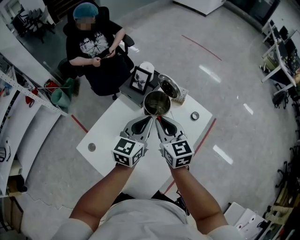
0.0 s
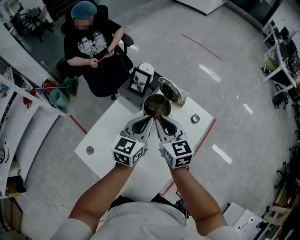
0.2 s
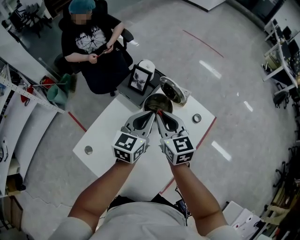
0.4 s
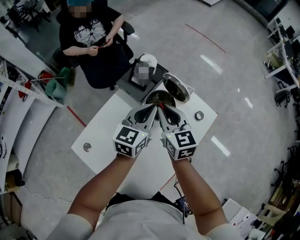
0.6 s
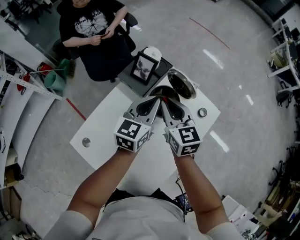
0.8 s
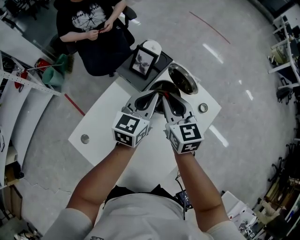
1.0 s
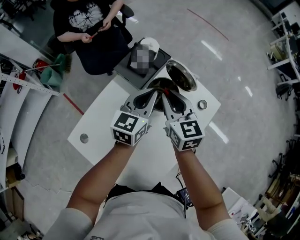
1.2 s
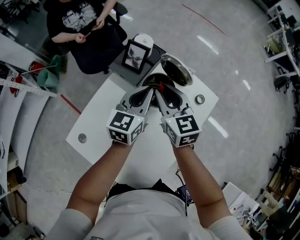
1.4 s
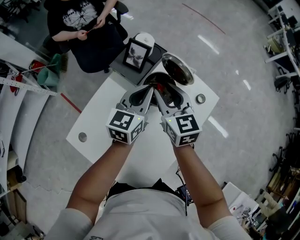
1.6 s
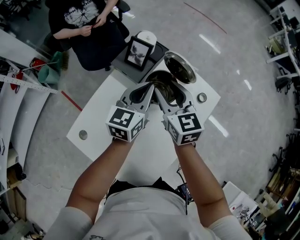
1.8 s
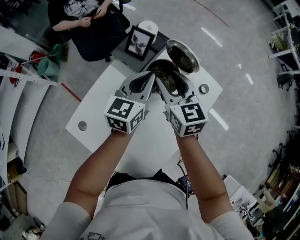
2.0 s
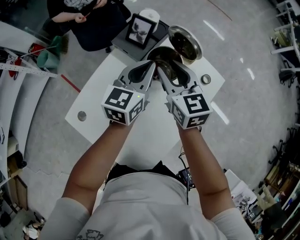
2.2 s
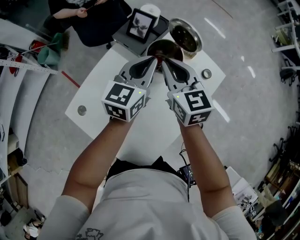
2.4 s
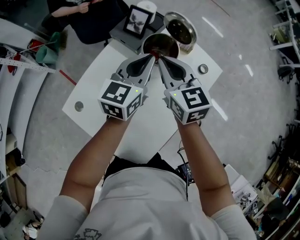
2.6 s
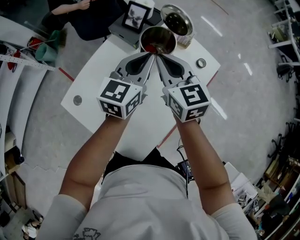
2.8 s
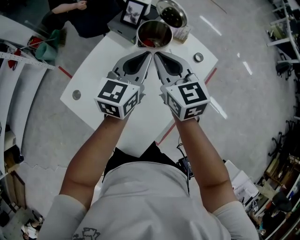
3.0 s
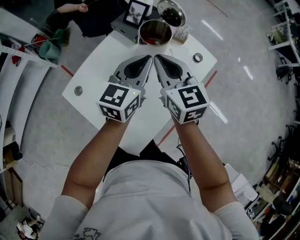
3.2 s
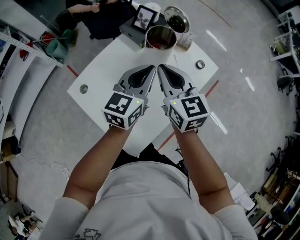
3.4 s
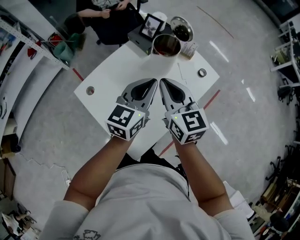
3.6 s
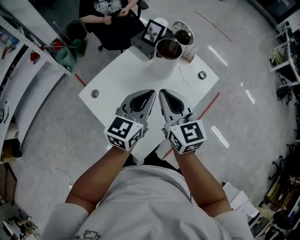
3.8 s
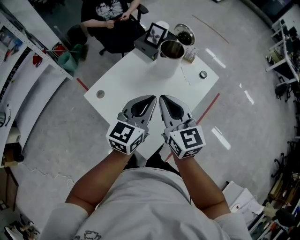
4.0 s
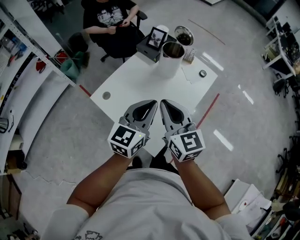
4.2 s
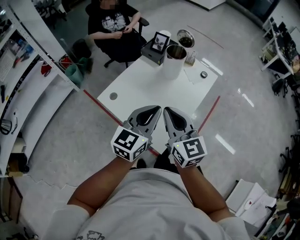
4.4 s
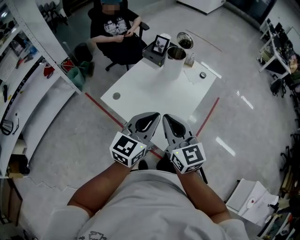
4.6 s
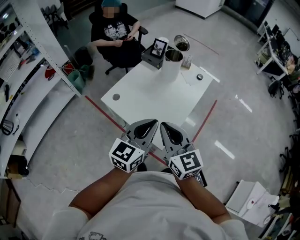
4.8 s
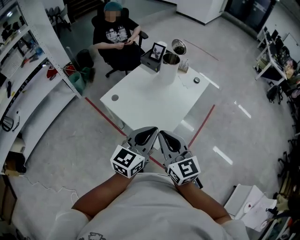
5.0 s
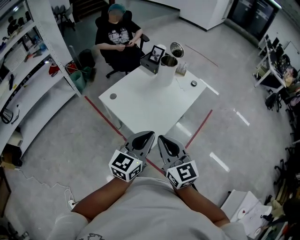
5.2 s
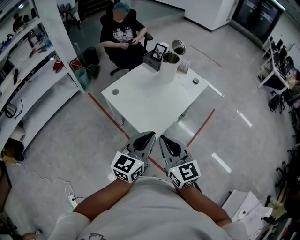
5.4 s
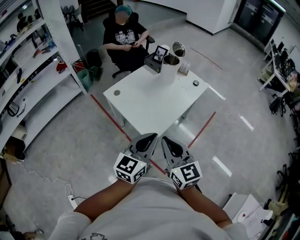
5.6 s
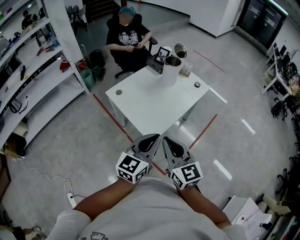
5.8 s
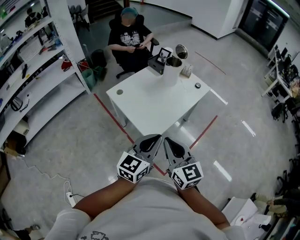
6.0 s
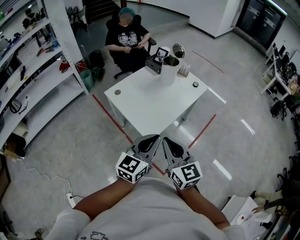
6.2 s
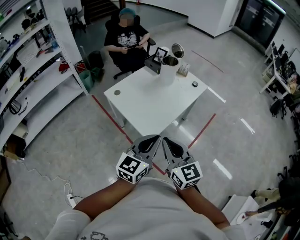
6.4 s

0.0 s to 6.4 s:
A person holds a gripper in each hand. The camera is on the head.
0.0 to 1.6 s: The right gripper is displaced forward by about 10 cm, and opens, while the left gripper travels forward and downward by some 10 cm.
1.6 to 3.2 s: The grippers both shift backward by approximately 15 cm. The right gripper closes.
3.2 to 4.8 s: The two grippers go some 40 cm backward.
4.8 to 6.4 s: Both grippers travel together backward and to the right, about 20 cm.

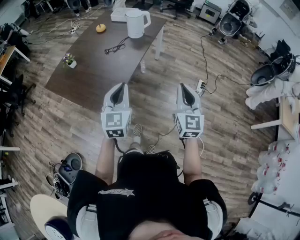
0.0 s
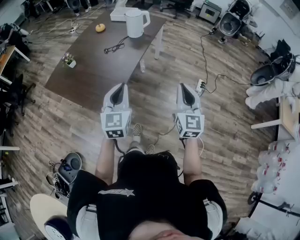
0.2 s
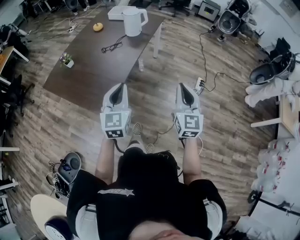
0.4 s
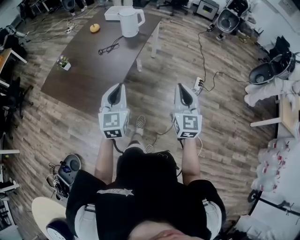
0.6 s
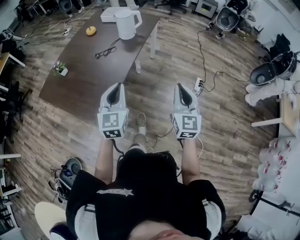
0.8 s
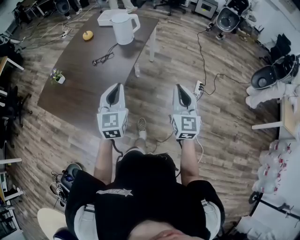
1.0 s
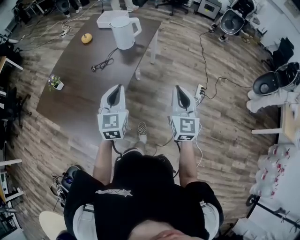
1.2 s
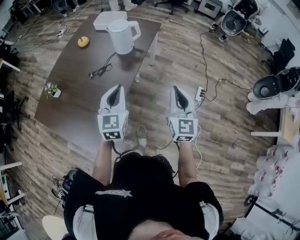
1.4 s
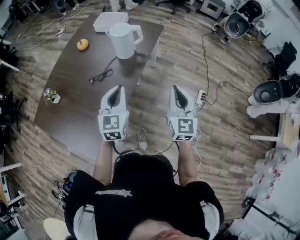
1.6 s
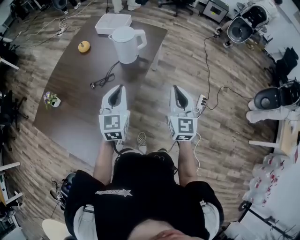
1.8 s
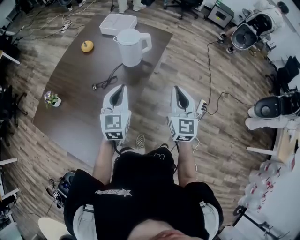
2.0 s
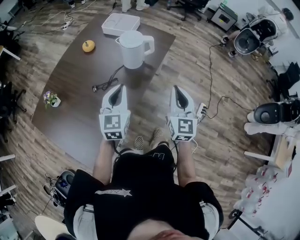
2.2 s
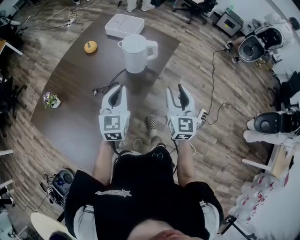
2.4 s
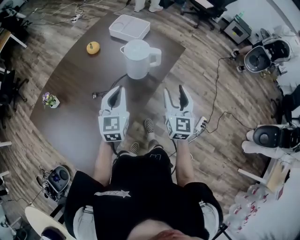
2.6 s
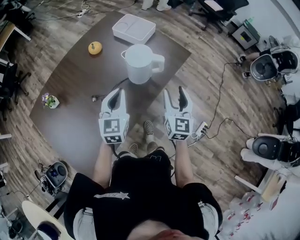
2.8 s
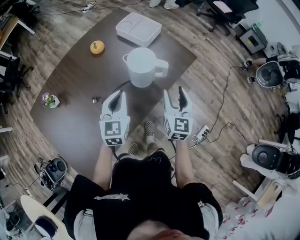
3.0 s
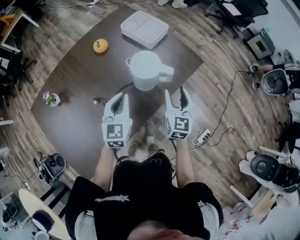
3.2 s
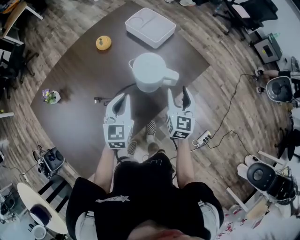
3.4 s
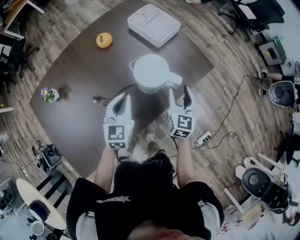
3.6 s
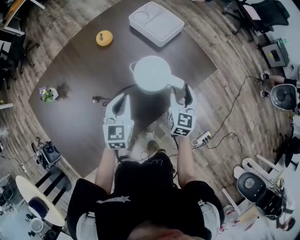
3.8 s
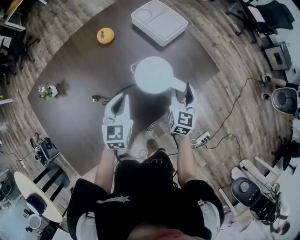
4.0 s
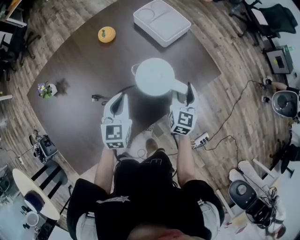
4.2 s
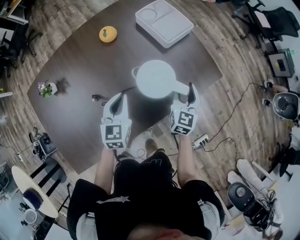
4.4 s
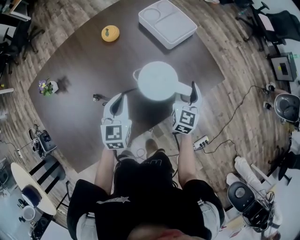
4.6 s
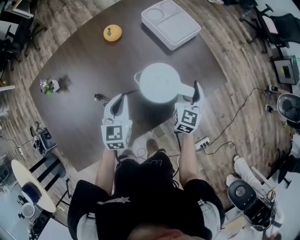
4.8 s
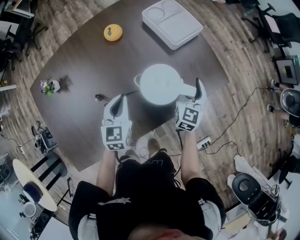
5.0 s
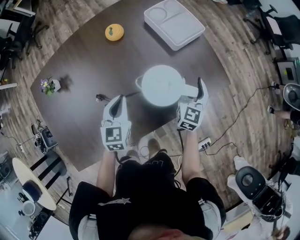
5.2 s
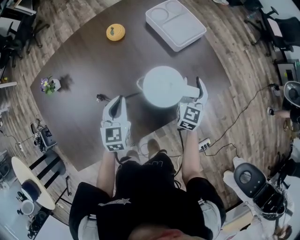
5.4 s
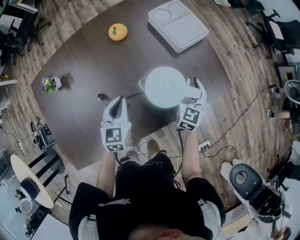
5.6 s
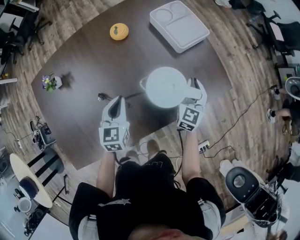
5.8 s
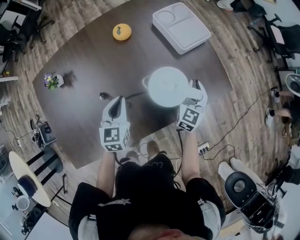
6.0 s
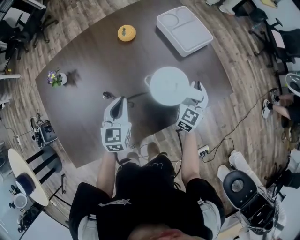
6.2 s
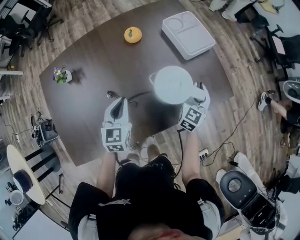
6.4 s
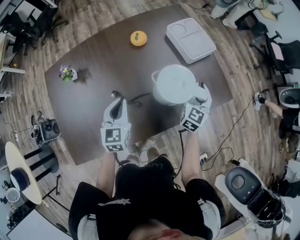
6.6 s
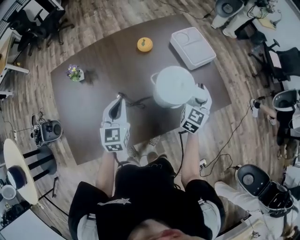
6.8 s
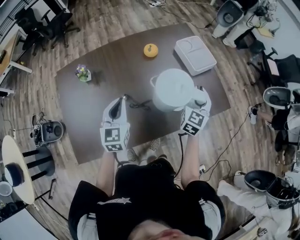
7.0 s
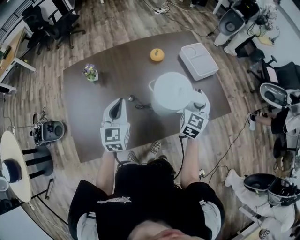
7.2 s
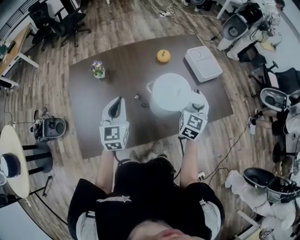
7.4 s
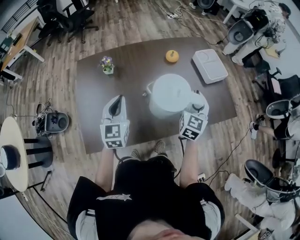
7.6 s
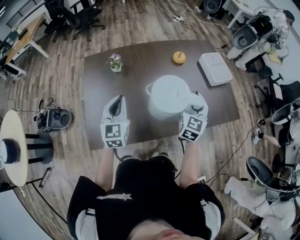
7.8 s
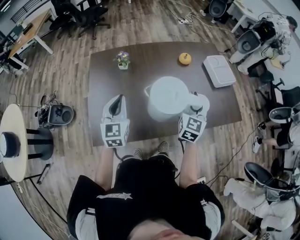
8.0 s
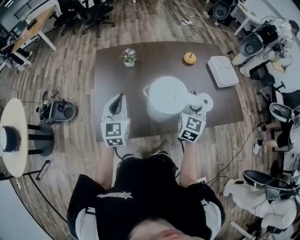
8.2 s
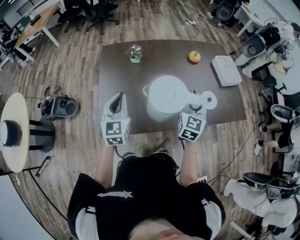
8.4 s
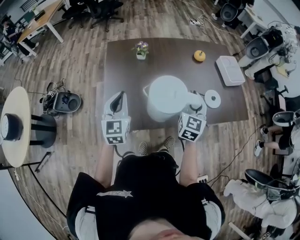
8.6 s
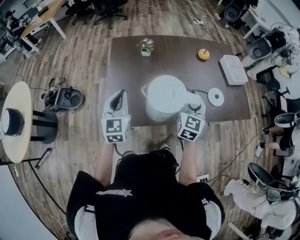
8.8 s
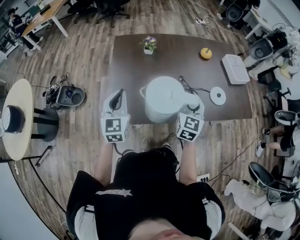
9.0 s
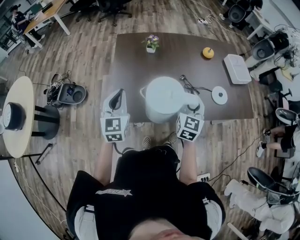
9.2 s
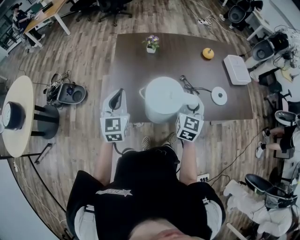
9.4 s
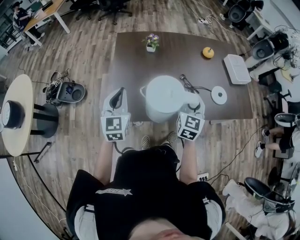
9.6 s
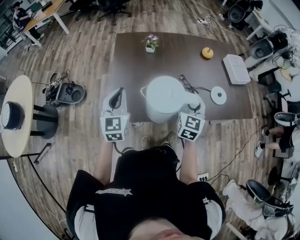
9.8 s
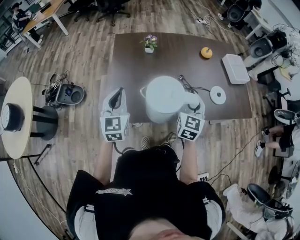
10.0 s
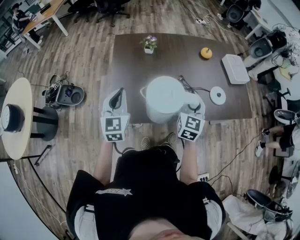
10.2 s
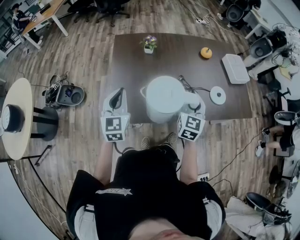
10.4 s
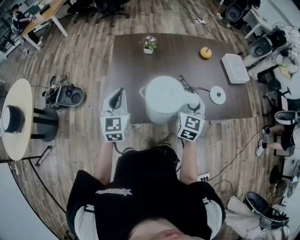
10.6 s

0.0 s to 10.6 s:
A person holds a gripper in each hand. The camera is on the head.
0.0 to 1.6 s: Both grippers move forward, some 35 cm.
1.6 to 3.0 s: The grippers both shift forward by about 30 cm. The right gripper opens up.
3.0 to 4.6 s: The right gripper heads forward and downward, covering roughly 20 cm, while the left gripper moves downward and forward, roughly 15 cm.
4.6 to 6.0 s: The right gripper closes.
6.0 to 7.6 s: The two grippers go about 30 cm to the left, upward and backward. The left gripper rotates approximately 20 degrees.
7.6 to 9.0 s: Both grippers move to the left and backward, roughly 25 cm.
9.0 to 10.6 s: The grippers make only small movements.

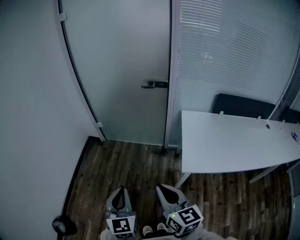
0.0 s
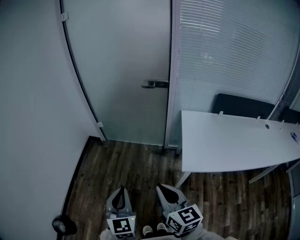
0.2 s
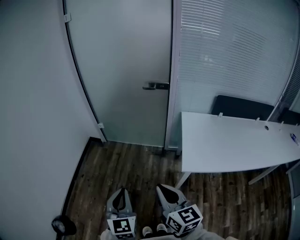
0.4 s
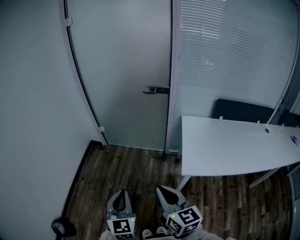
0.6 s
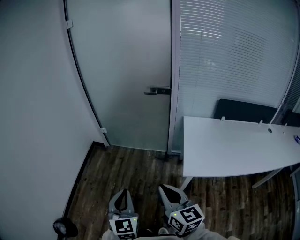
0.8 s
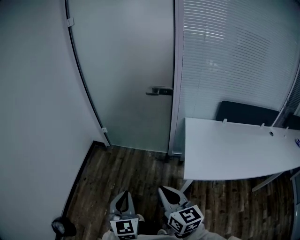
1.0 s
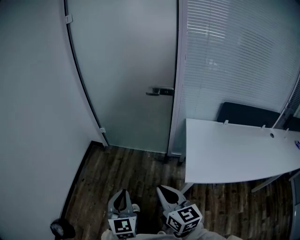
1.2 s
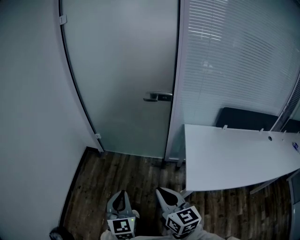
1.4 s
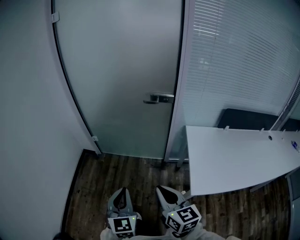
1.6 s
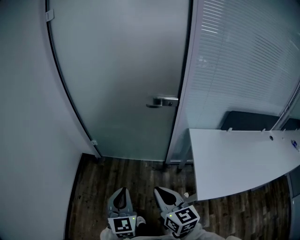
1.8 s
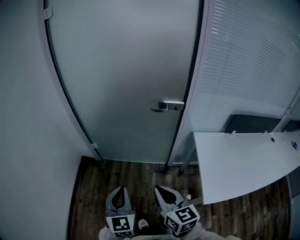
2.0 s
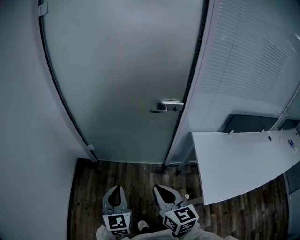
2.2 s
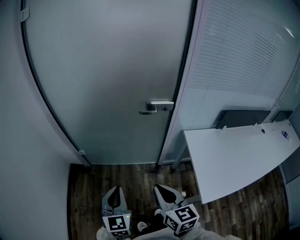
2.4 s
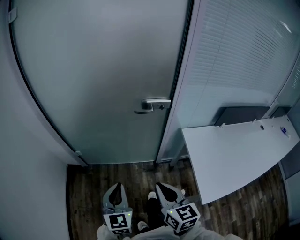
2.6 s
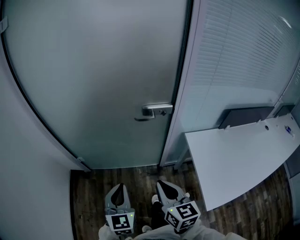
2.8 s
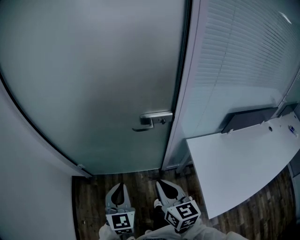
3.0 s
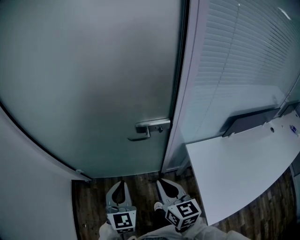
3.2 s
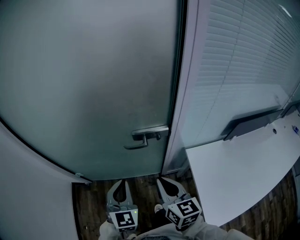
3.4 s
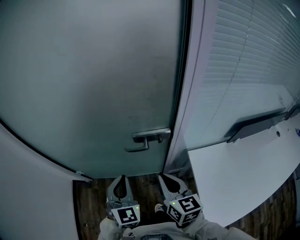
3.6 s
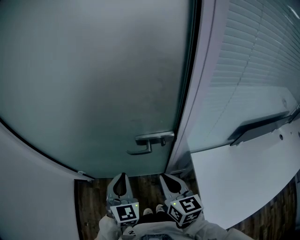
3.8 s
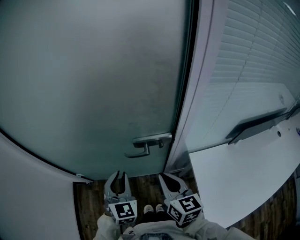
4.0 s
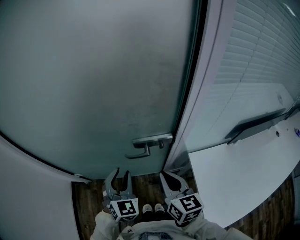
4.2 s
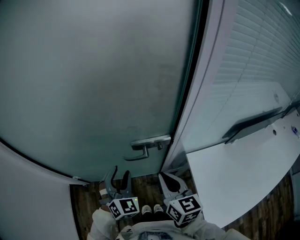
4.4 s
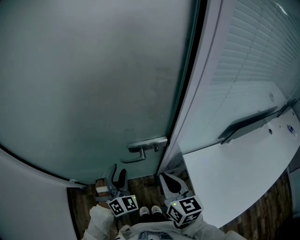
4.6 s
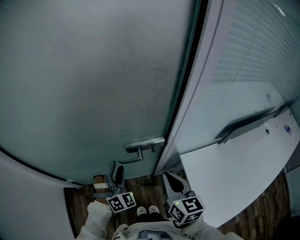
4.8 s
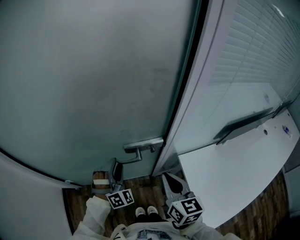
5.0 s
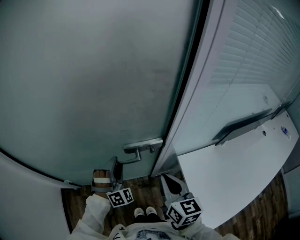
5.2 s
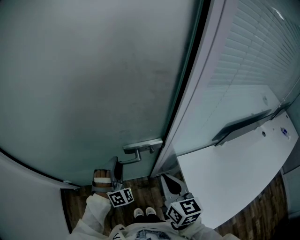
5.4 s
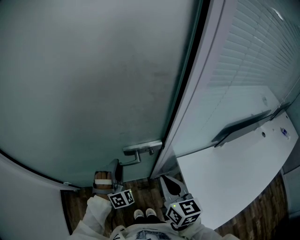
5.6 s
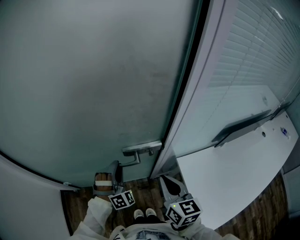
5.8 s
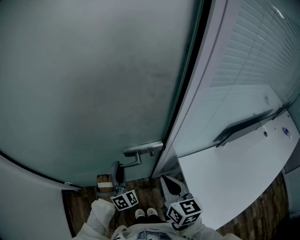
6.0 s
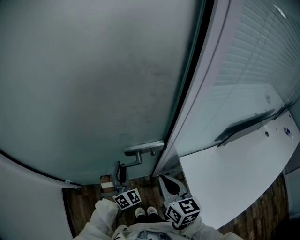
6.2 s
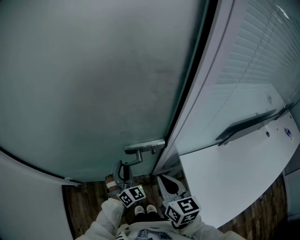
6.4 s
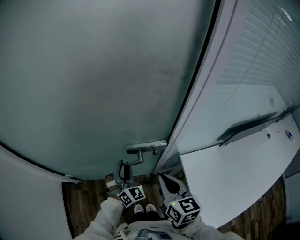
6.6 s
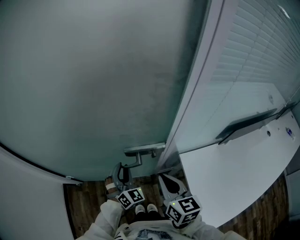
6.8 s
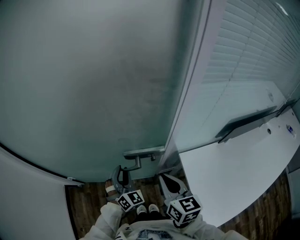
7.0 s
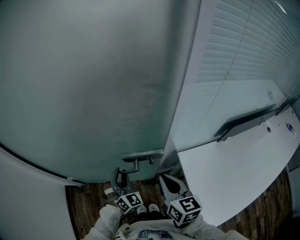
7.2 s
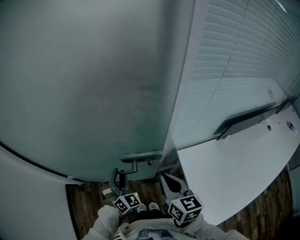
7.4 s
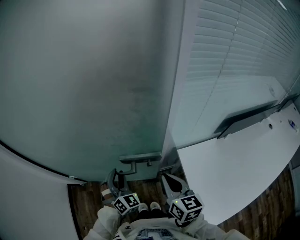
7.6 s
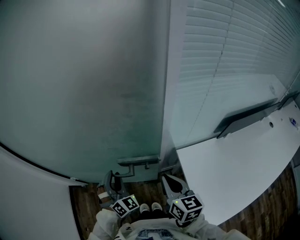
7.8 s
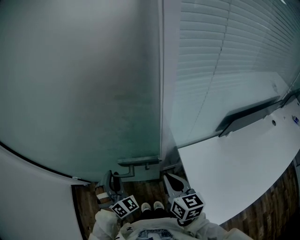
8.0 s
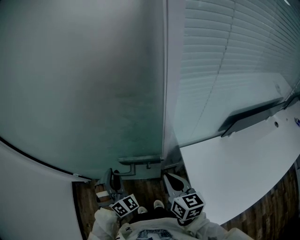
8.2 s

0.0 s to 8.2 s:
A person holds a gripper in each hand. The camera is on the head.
0.0 to 1.6 s: The two grippers go approximately 15 cm forward.
1.6 to 3.2 s: The grippers both shift forward by about 35 cm.
3.2 to 5.0 s: The right gripper moves forward and to the right, roughly 15 cm. The left gripper moves forward, approximately 20 cm, rotates around the line of its fingers by some 60 degrees, clockwise from behind, and opens up.
5.0 to 6.6 s: The left gripper changes its angle by approximately 30 degrees, and closes.
6.6 to 8.2 s: The left gripper goes about 5 cm backward. Meanwhile the right gripper goes approximately 5 cm to the right.
